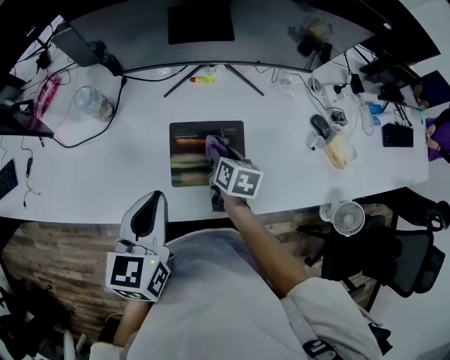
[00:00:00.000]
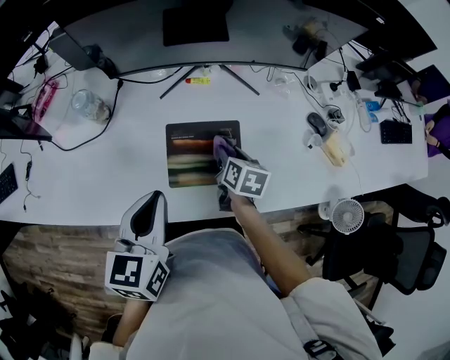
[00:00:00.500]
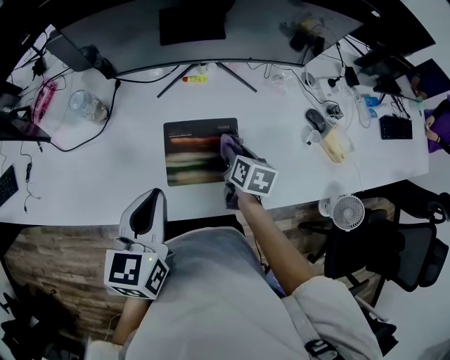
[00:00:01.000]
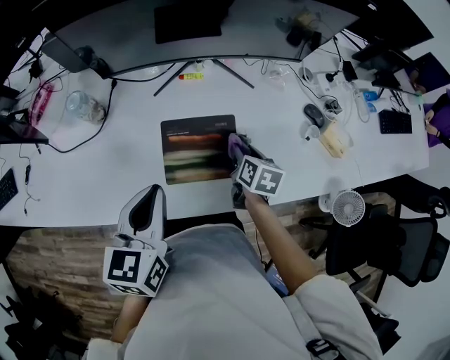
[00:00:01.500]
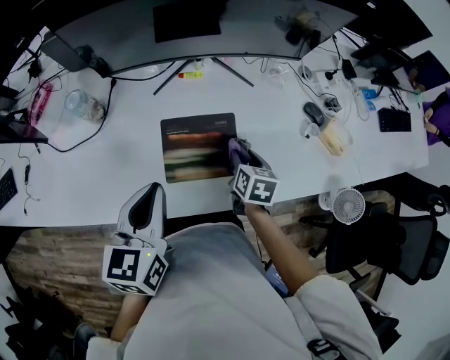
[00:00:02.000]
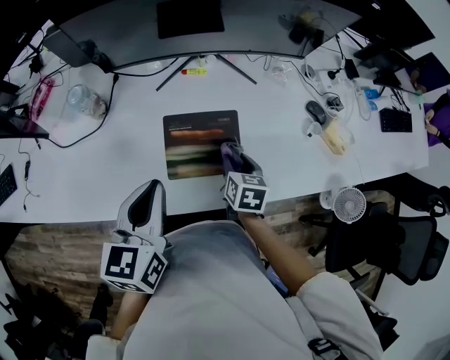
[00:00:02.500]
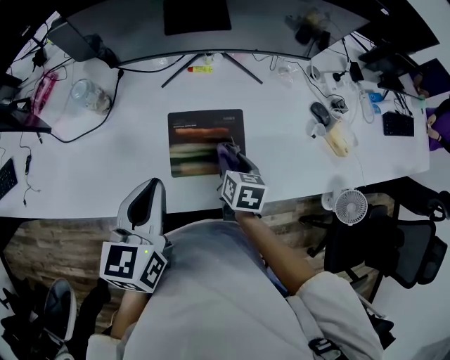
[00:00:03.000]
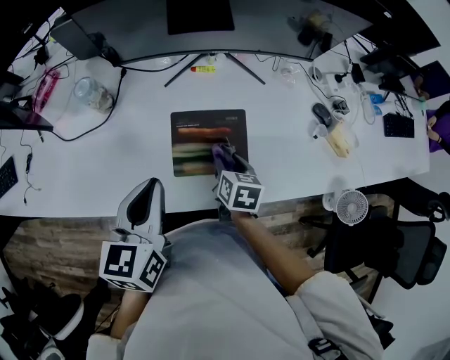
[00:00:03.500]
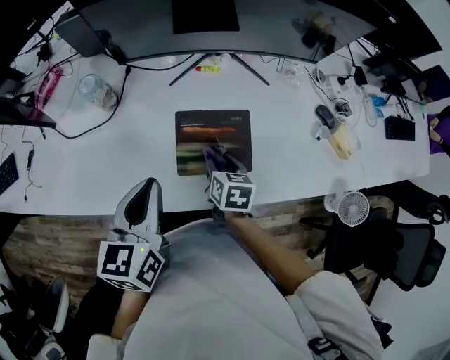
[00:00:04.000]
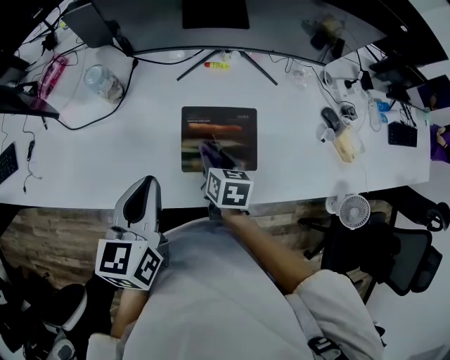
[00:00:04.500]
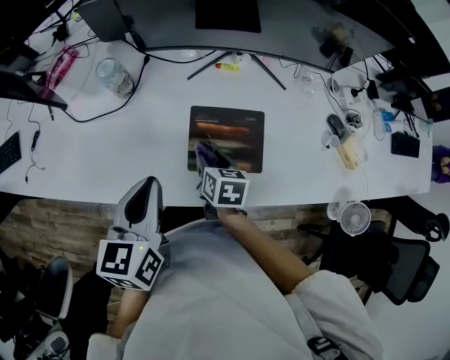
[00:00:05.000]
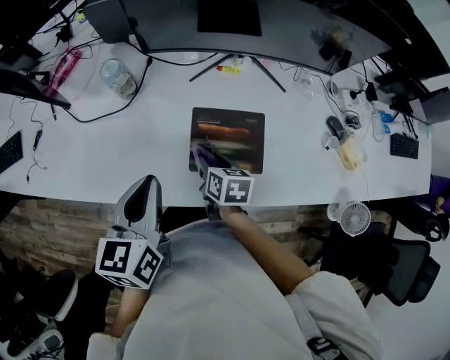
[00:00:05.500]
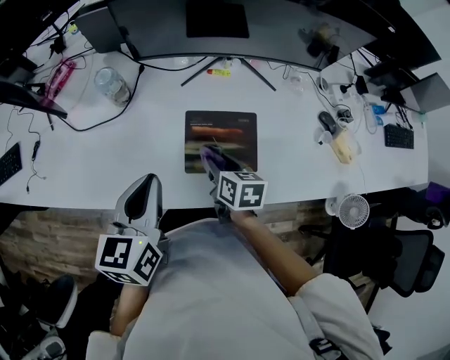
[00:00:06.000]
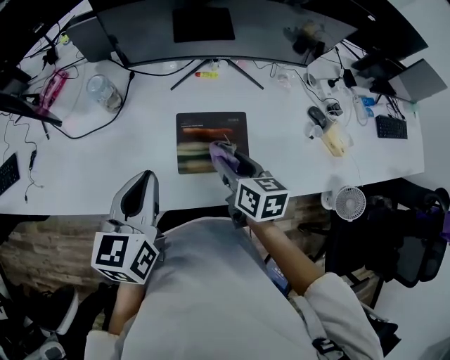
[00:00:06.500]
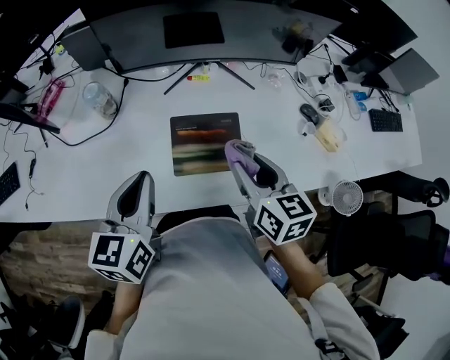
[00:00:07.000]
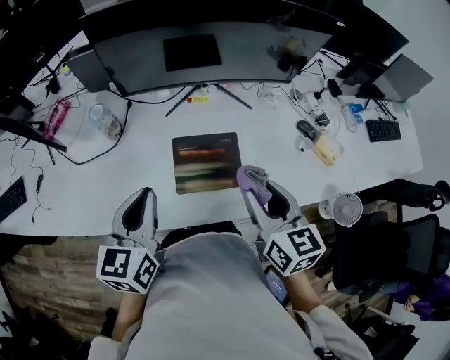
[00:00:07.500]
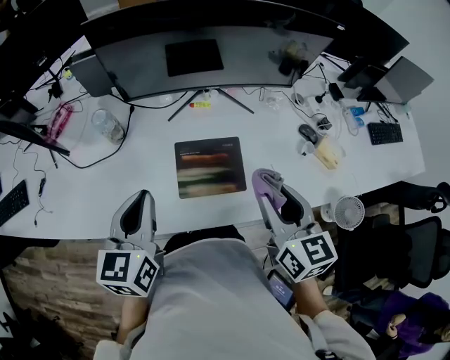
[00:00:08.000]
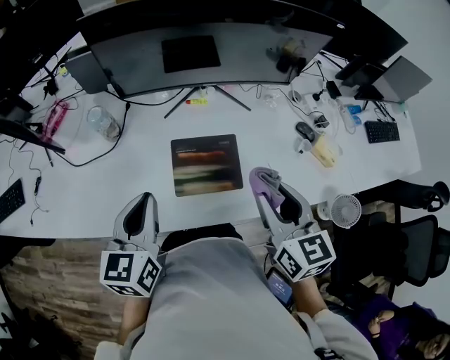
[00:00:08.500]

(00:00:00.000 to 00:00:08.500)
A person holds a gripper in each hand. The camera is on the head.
00:00:00.000 - 00:00:02.000: The right gripper moves to the right, roughly 10 cm.
00:00:02.000 - 00:00:04.000: The right gripper is displaced to the left by about 10 cm, while the left gripper is displaced to the left by roughly 5 cm.
00:00:04.000 - 00:00:06.500: The right gripper goes some 10 cm upward.
00:00:06.500 - 00:00:08.500: The right gripper goes roughly 15 cm upward and to the right, and rotates approximately 20 degrees.

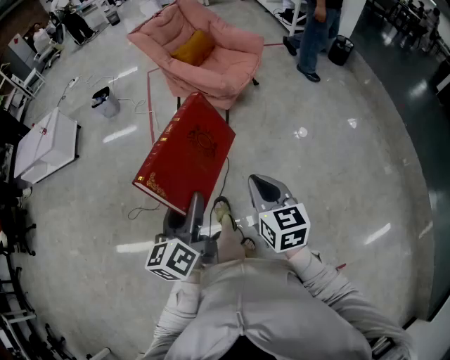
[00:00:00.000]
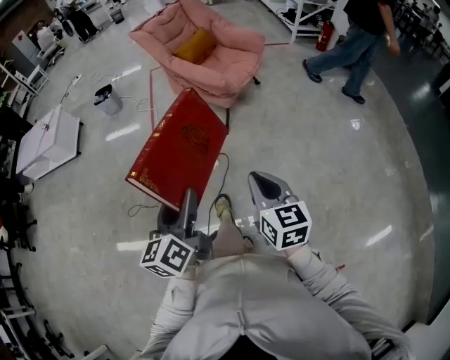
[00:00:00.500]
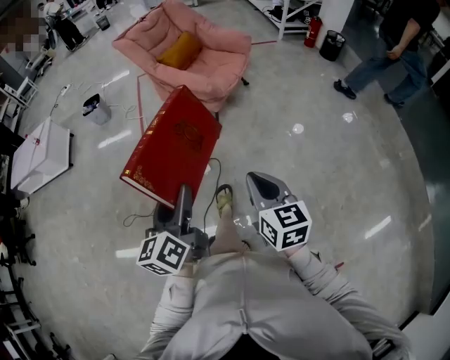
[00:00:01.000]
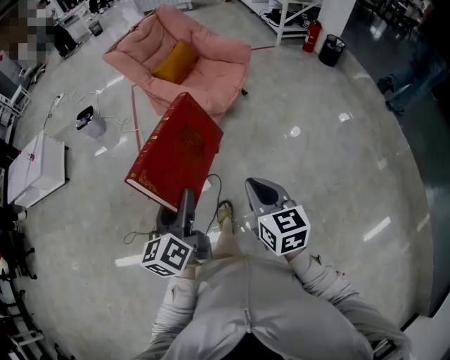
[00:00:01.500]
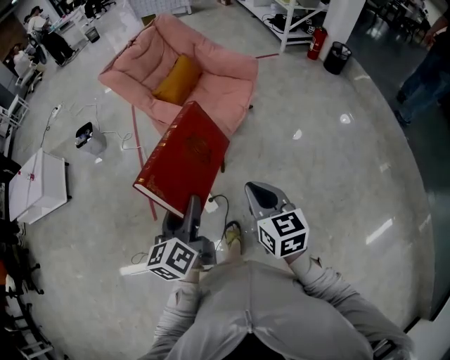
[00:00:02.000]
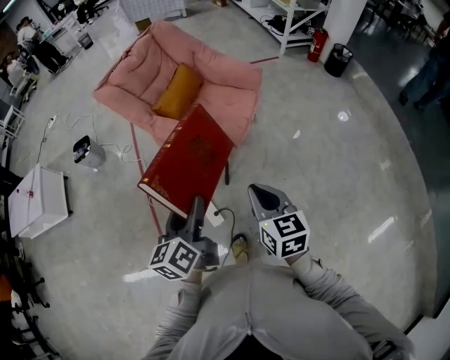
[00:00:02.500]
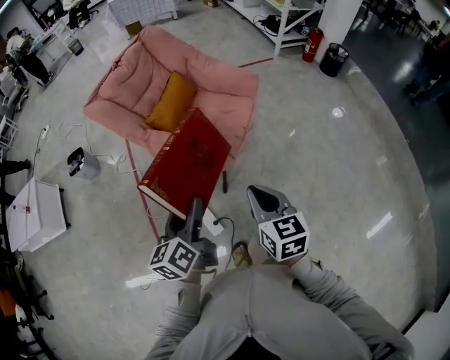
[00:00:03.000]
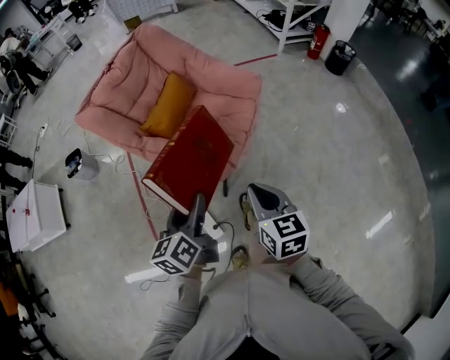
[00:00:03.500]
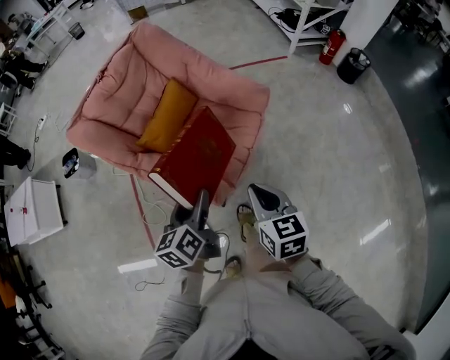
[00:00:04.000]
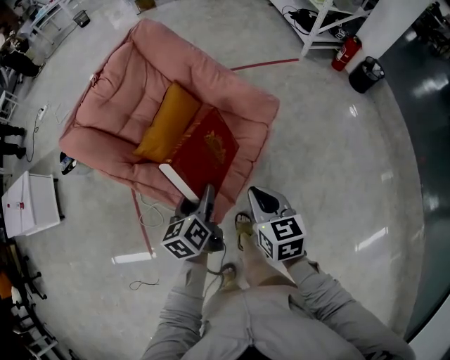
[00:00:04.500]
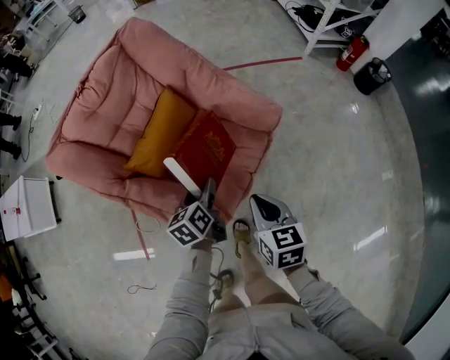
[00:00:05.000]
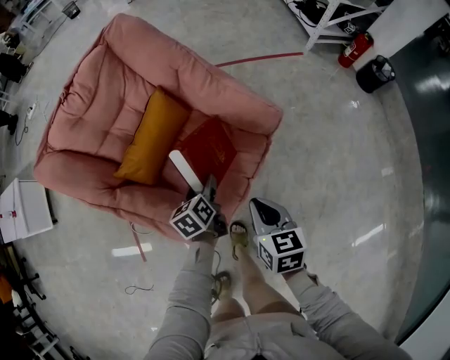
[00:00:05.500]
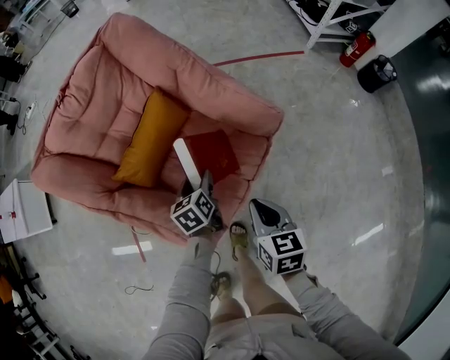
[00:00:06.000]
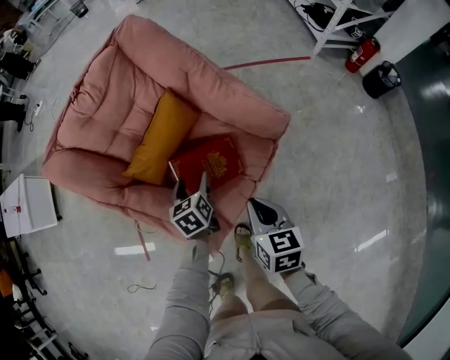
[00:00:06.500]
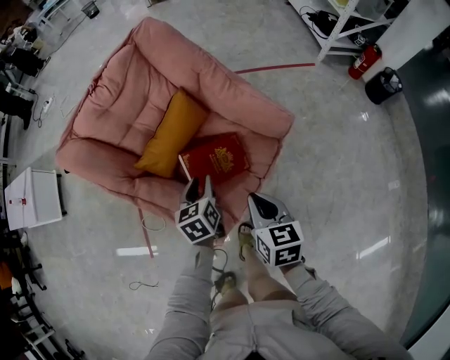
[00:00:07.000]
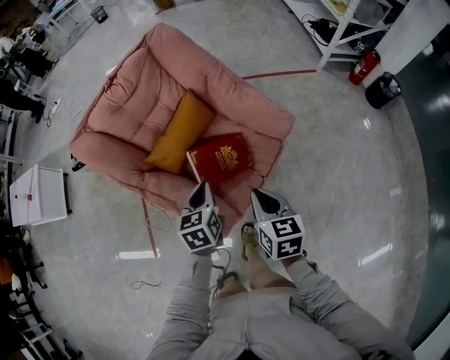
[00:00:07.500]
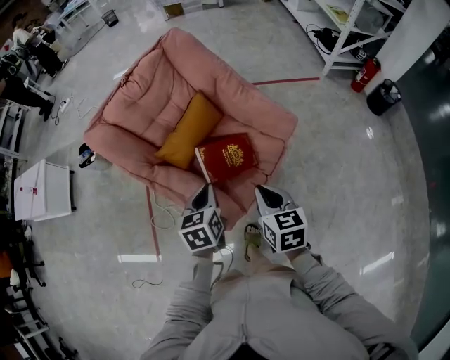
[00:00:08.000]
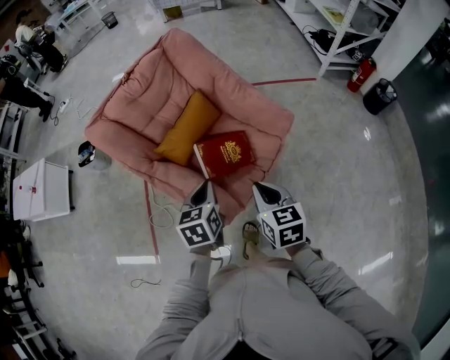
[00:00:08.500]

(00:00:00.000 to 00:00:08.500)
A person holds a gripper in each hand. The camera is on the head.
00:00:00.000 - 00:00:02.000: The grippers both shift forward by about 30 cm.
00:00:02.000 - 00:00:04.000: Both grippers travel together forward, some 35 cm.
00:00:04.000 - 00:00:06.500: The two grippers go roughly 25 cm forward and downward. The left gripper rotates about 30 degrees.
00:00:06.500 - 00:00:08.500: The left gripper moves upward and backward, some 20 cm, and closes its fingers. Meanwhile the right gripper moves upward and backward, some 10 cm.

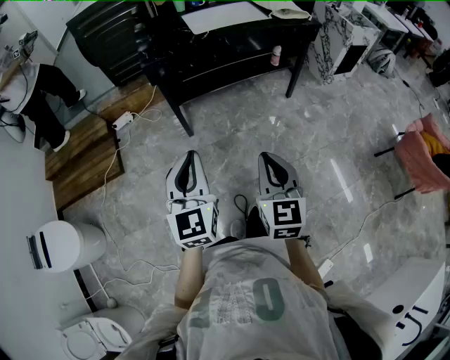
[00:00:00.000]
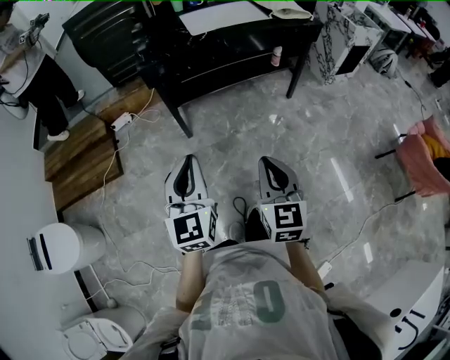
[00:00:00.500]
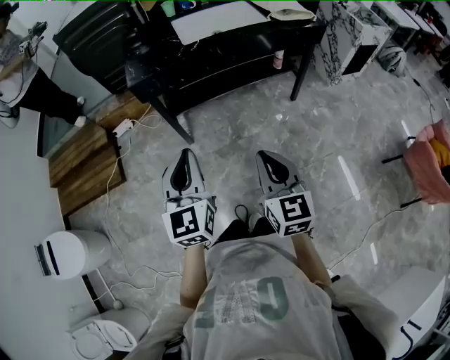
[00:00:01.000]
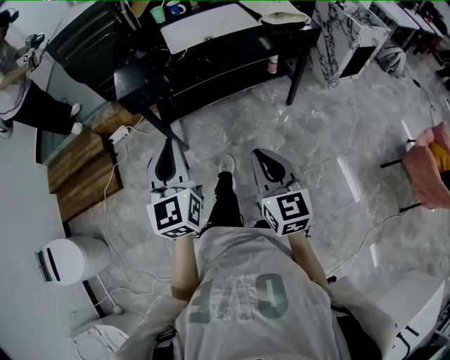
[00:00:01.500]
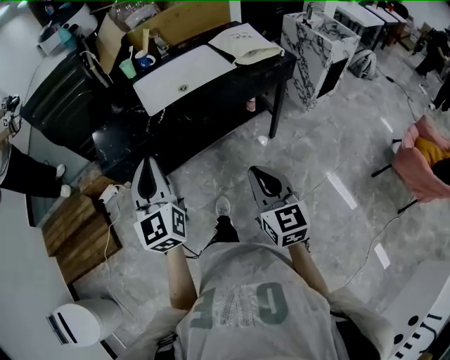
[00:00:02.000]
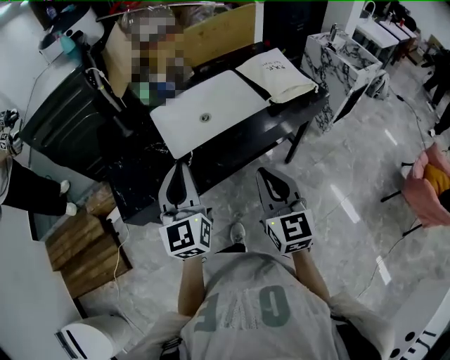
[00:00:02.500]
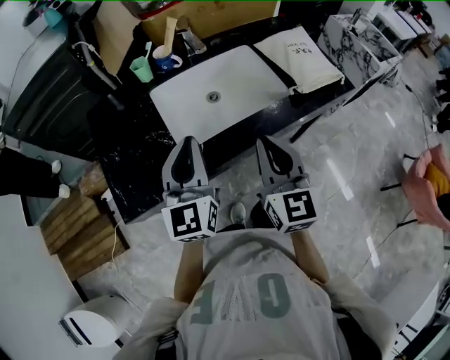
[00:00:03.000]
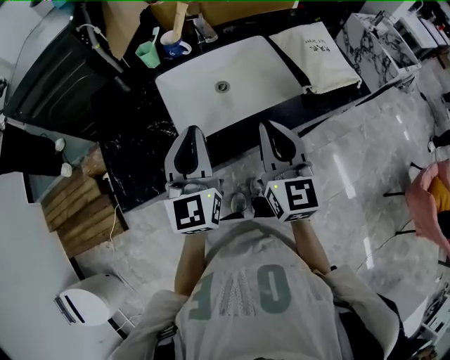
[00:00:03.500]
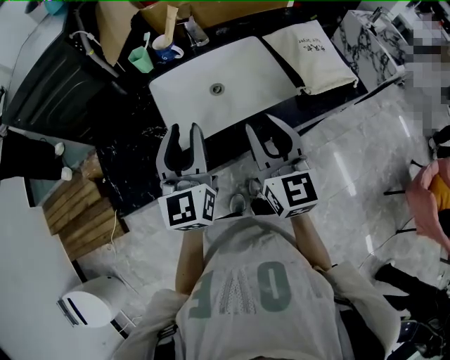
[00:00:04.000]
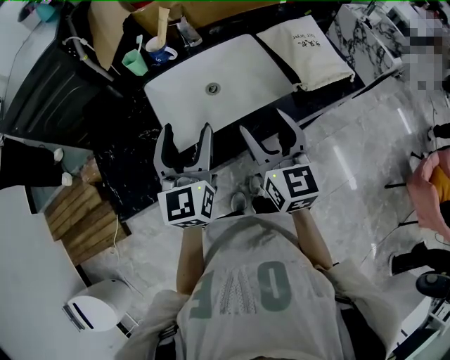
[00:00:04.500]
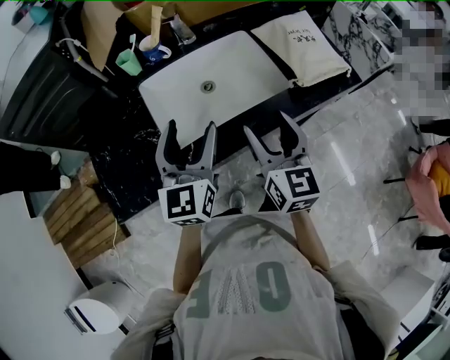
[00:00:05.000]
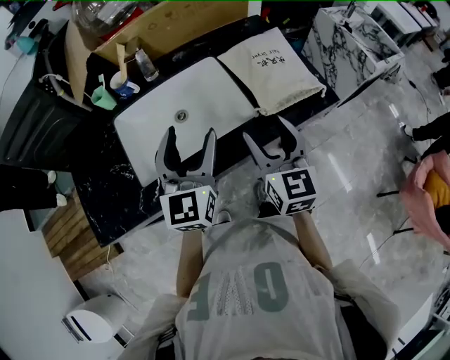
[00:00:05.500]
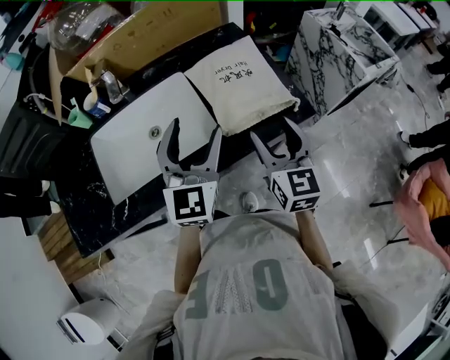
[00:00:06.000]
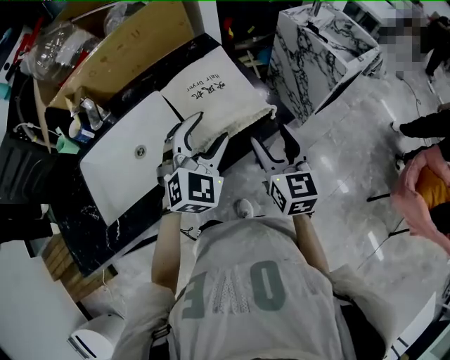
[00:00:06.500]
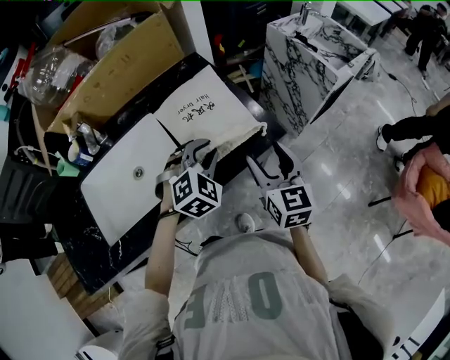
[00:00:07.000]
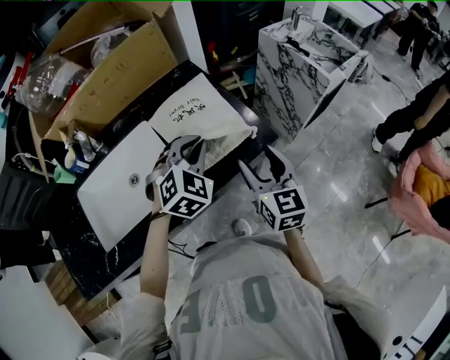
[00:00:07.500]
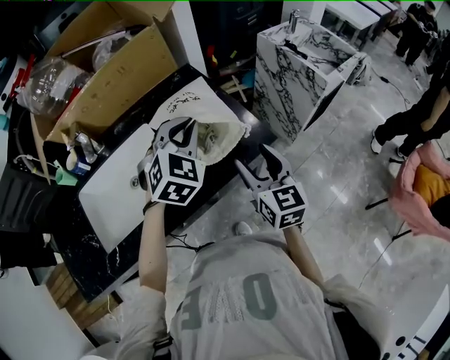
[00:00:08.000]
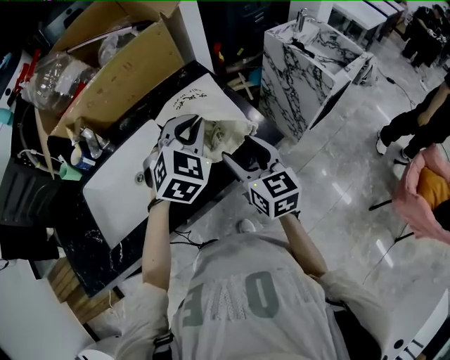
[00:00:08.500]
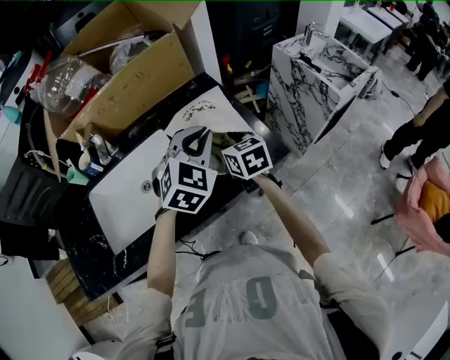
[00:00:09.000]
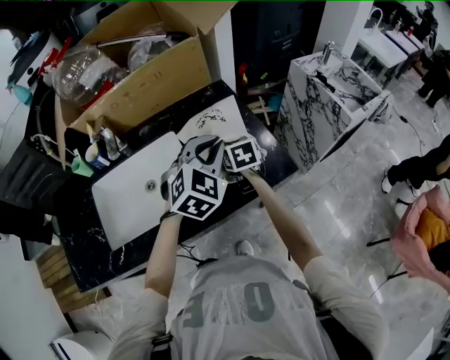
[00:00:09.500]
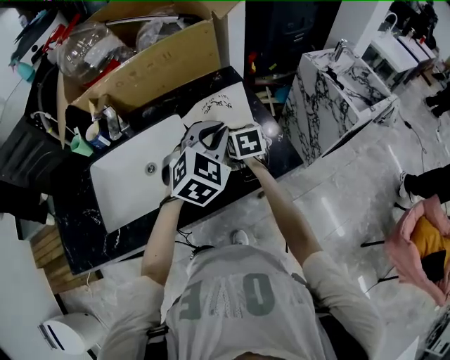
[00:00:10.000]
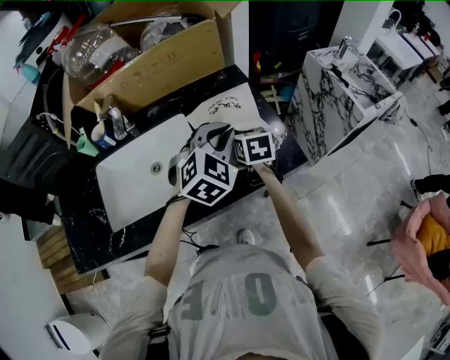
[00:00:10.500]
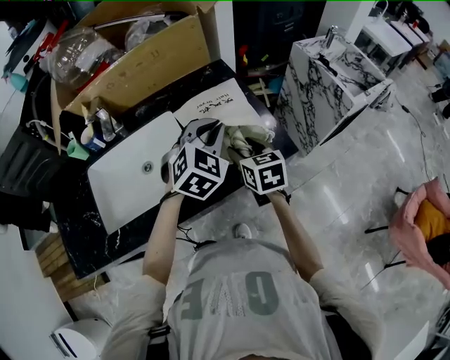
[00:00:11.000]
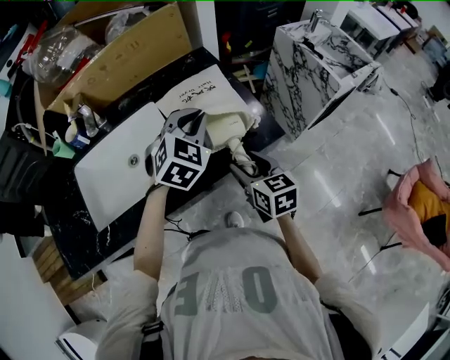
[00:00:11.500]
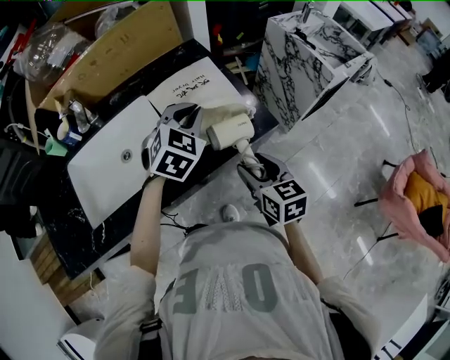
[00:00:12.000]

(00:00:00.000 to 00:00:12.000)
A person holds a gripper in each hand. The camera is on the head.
00:00:00.000 - 00:00:02.000: The left gripper is displaced forward by roughly 35 cm. The right gripper moves forward and to the right, roughly 35 cm.
00:00:02.000 - 00:00:04.000: Both grippers travel together forward, roughly 35 cm.
00:00:04.000 - 00:00:06.000: The two grippers go about 30 cm to the right. The right gripper opens its fingers. Meanwhile the left gripper opens its fingers.
00:00:06.000 - 00:00:08.000: The left gripper goes some 15 cm forward and to the right, rotates about 40 degrees, and closes its fingers. The right gripper shifts about 5 cm to the right.
00:00:08.000 - 00:00:10.000: The right gripper shifts roughly 25 cm forward, to the left and downward, and rotates approximately 30 degrees.
00:00:10.000 - 00:00:12.000: The left gripper goes about 5 cm downward. The right gripper is displaced backward and to the right by approximately 25 cm.
